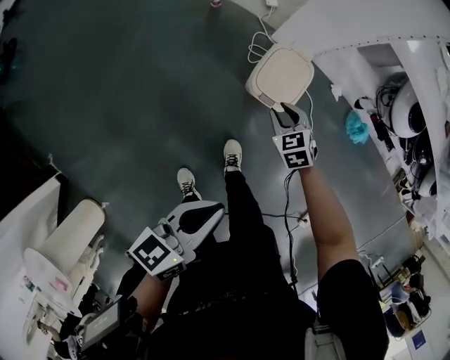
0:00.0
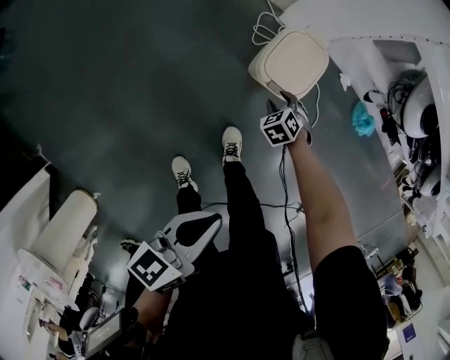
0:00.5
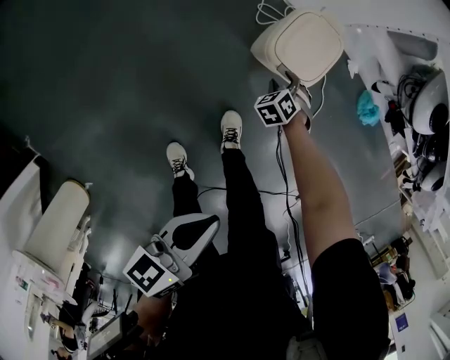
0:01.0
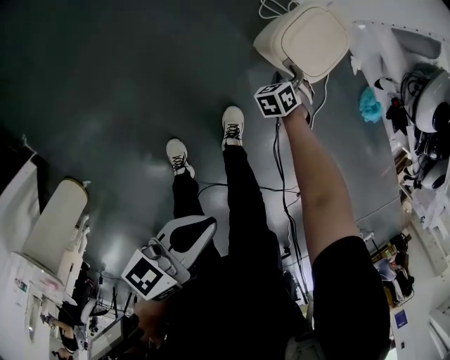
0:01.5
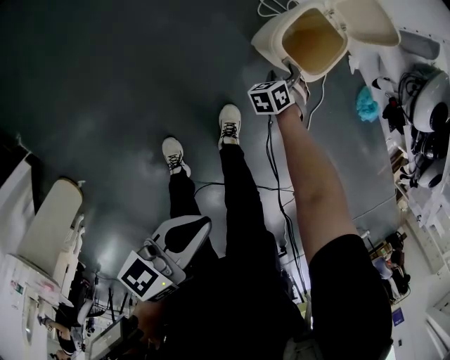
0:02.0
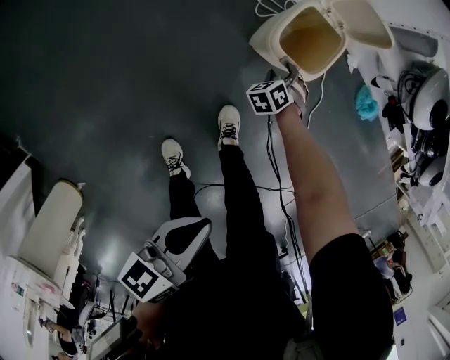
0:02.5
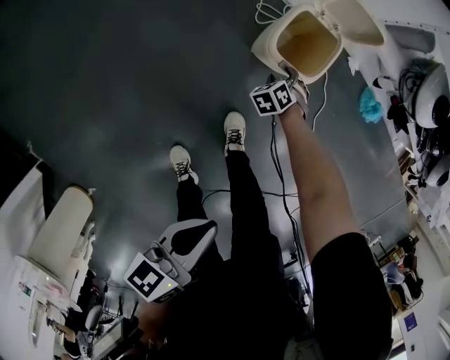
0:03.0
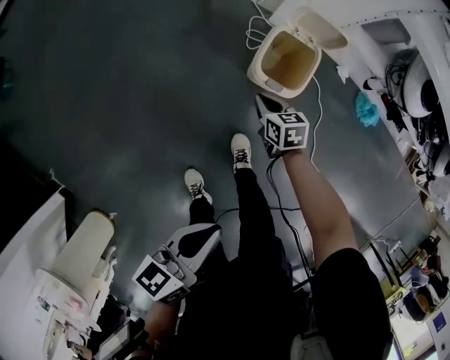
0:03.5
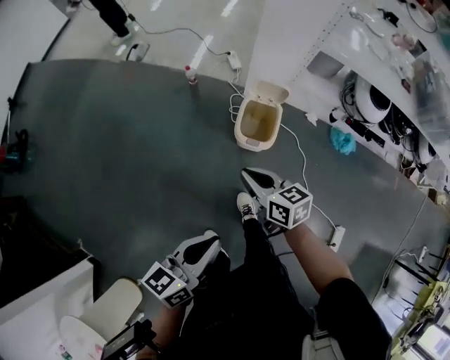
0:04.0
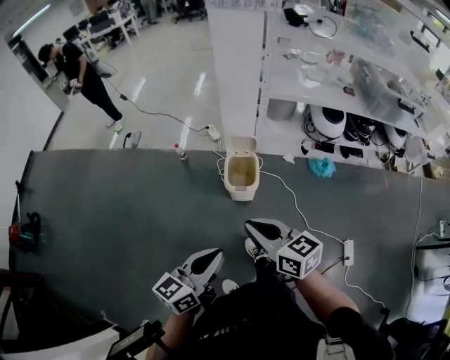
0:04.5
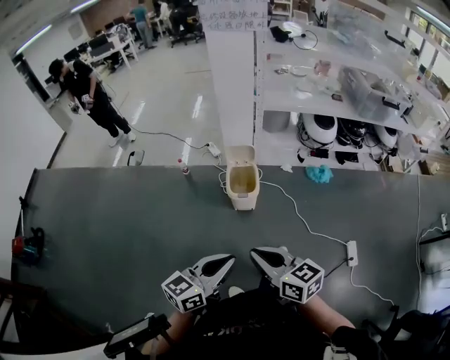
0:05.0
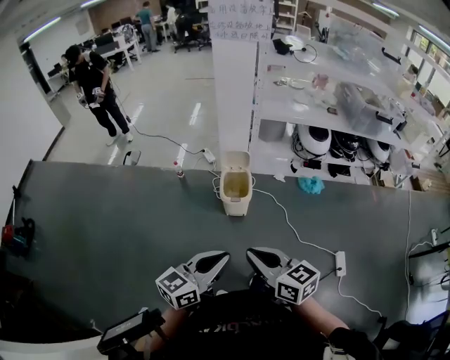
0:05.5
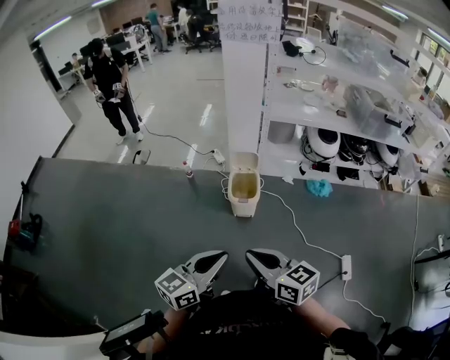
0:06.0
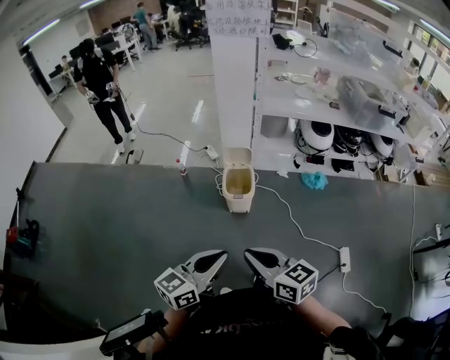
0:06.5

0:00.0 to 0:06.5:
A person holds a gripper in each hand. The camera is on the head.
0:00.0 to 0:02.0: The right gripper moves downward, approximately 25 cm, turns by roughly 40 degrees, and opens, while the left gripper goes approximately 15 cm downward.
0:02.0 to 0:04.5: The right gripper is displaced upward by approximately 70 cm, tips its fingers upward by some 50 degrees, and closes up. The left gripper moves upward, approximately 30 cm, and turns by roughly 40 degrees.
0:04.5 to 0:06.5: The right gripper travels backward by roughly 15 cm. Meanwhile the left gripper moves backward, roughly 10 cm.

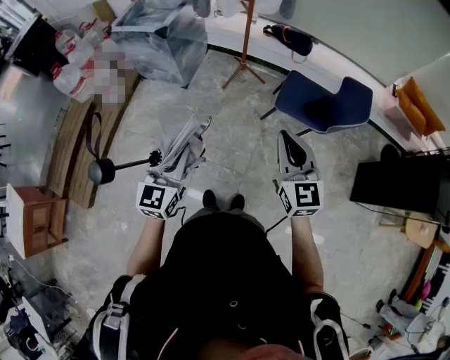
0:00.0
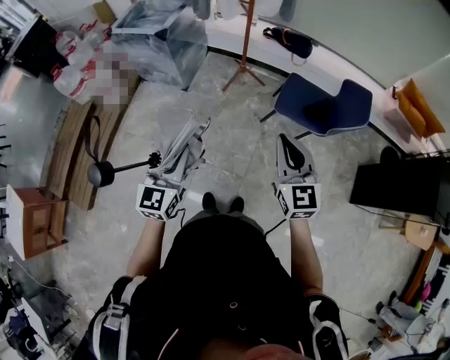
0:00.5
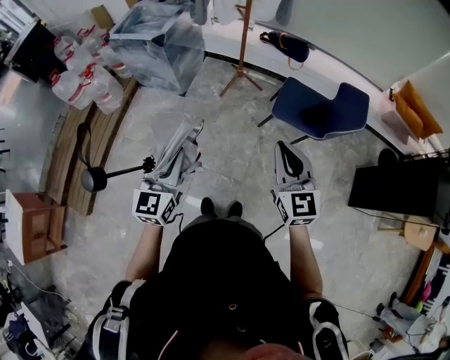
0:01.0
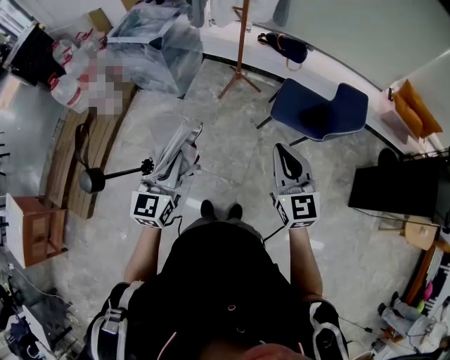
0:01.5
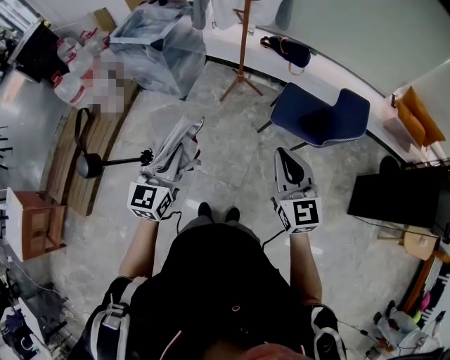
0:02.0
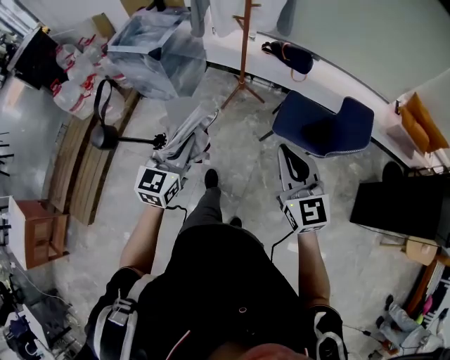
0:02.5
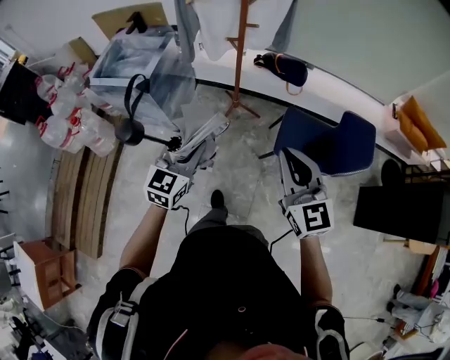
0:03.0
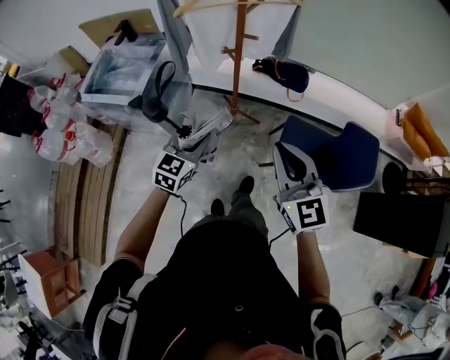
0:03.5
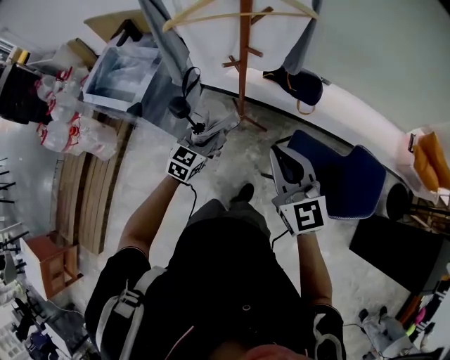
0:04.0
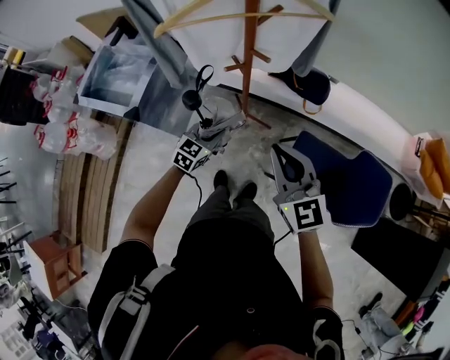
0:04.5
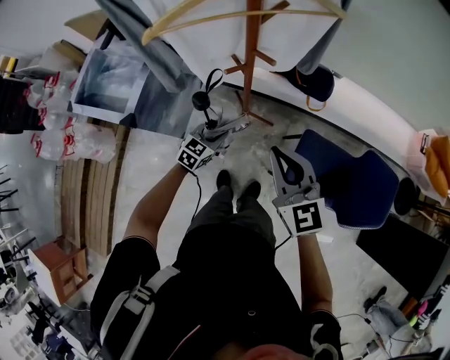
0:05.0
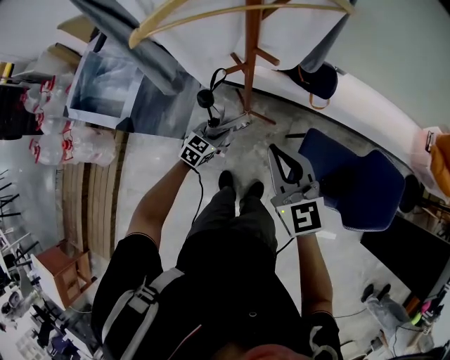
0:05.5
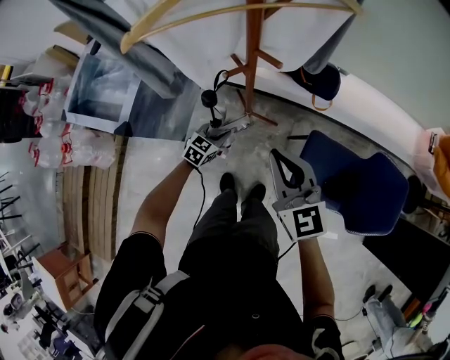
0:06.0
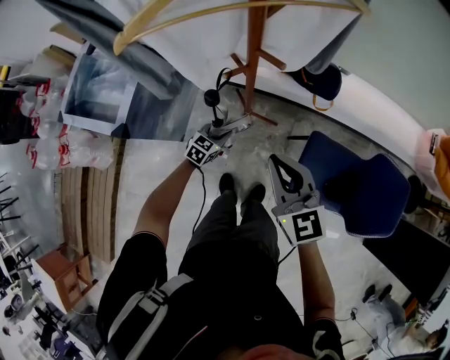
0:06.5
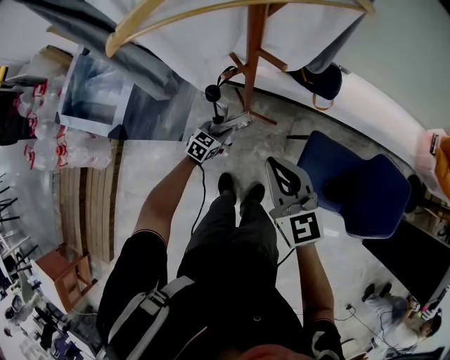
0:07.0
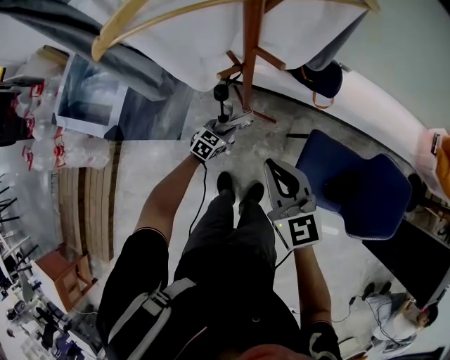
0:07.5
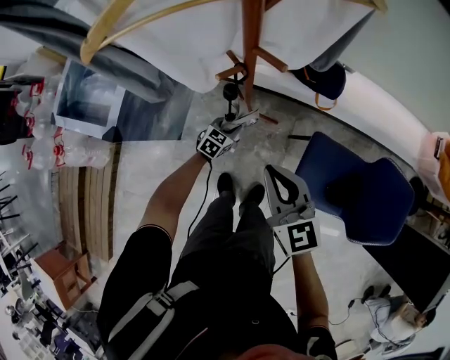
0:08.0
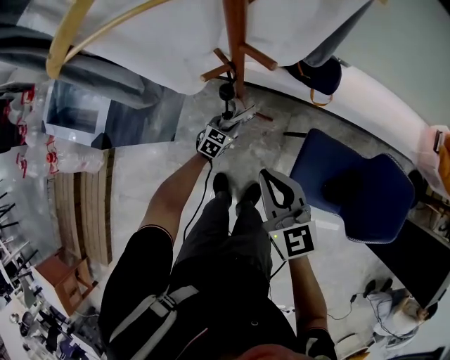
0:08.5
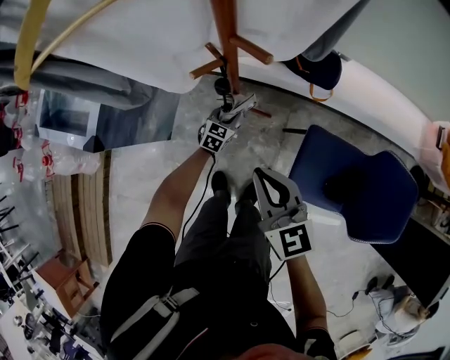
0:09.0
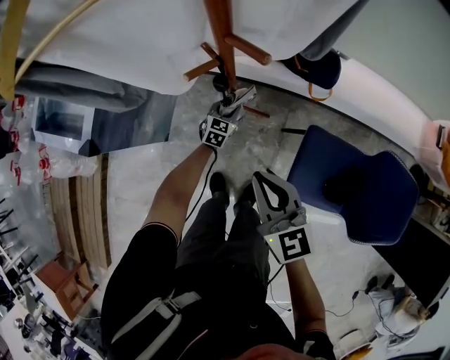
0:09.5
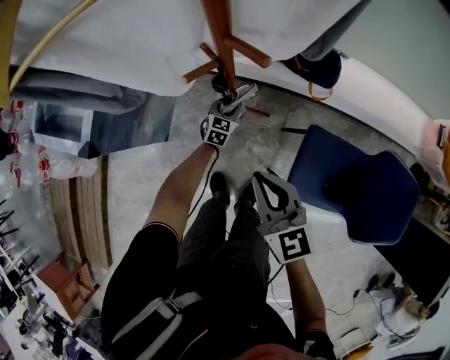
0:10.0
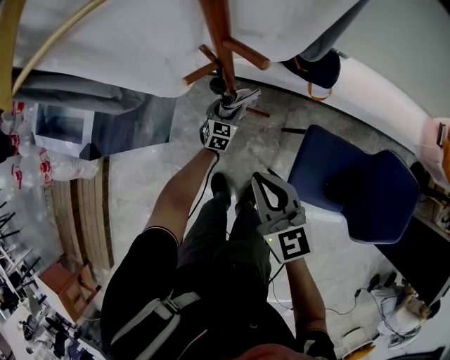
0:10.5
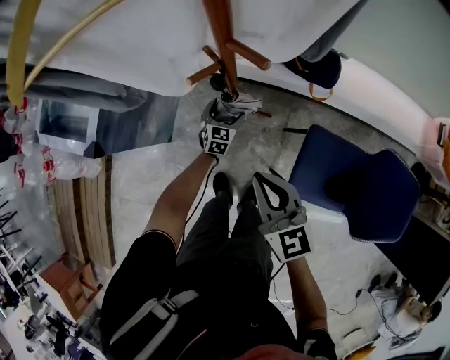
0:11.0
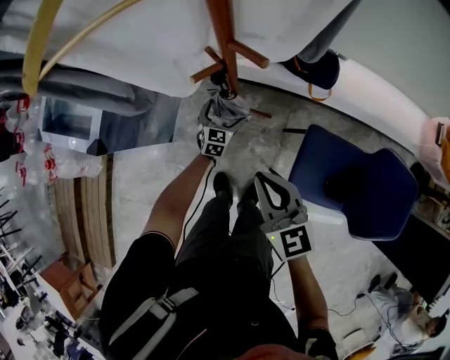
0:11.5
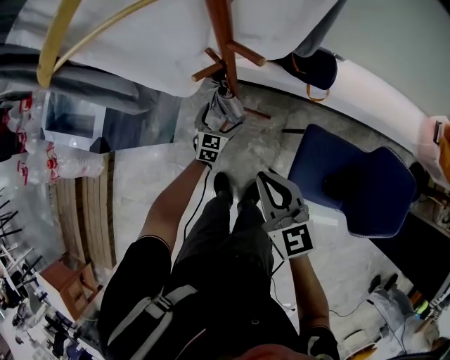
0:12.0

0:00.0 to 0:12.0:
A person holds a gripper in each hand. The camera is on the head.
0:00.0 to 0:02.0: The left gripper is displaced forward by about 5 cm.
0:02.0 to 0:04.0: Both grippers are carried forward, some 50 cm. The left gripper turns by about 30 degrees.
0:04.0 to 0:06.0: The right gripper travels downward and forward by roughly 15 cm. Meanwhile the left gripper shifts approximately 25 cm downward and forward.
0:06.0 to 0:08.0: The right gripper shifts some 5 cm downward. Meanwhile the left gripper heads downward and forward, covering about 10 cm.
0:08.0 to 0:10.0: The right gripper shifts some 5 cm downward. Meanwhile the left gripper moves forward, about 10 cm.
0:10.0 to 0:12.0: The left gripper moves upward, roughly 5 cm, and opens its fingers.

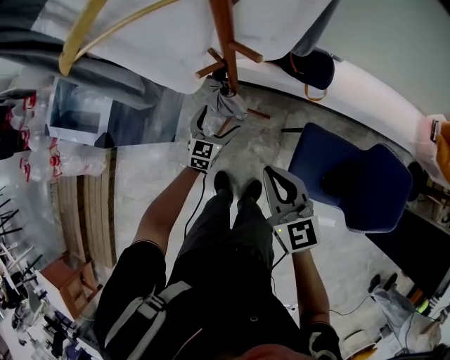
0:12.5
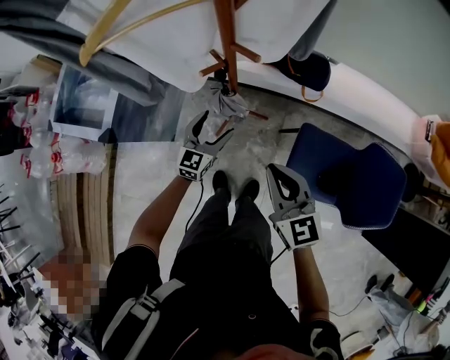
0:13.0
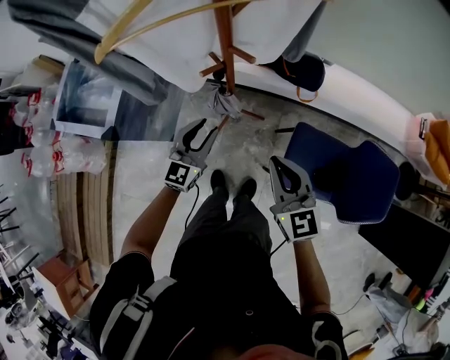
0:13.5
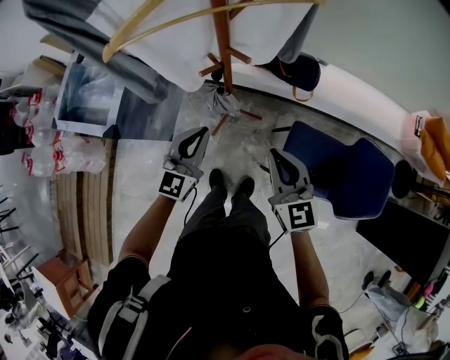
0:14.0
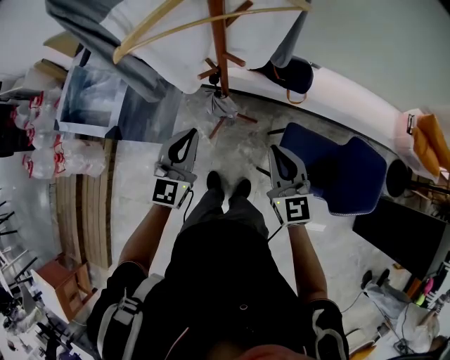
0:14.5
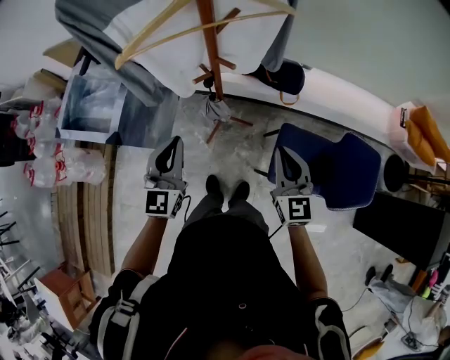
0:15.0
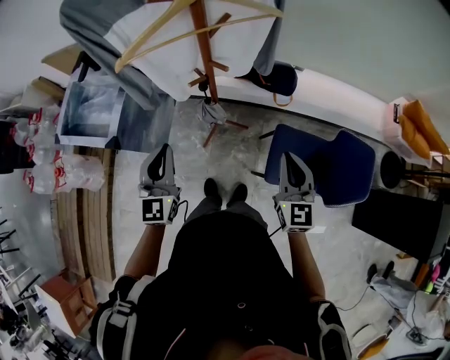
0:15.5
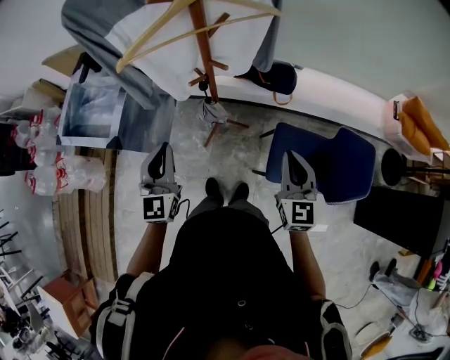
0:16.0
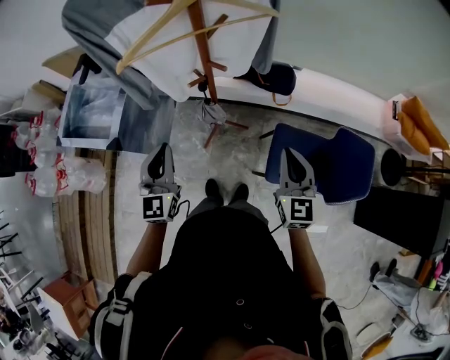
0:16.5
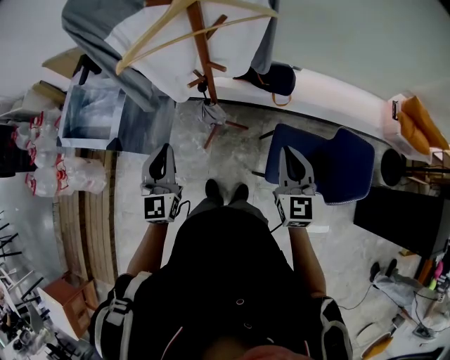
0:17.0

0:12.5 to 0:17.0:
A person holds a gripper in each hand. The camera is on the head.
0:12.5 to 0:14.5: The left gripper is displaced upward by approximately 30 cm, and closes up. Meanwhile the right gripper is displaced upward by some 10 cm.
0:14.5 to 0:17.0: The right gripper moves to the right, approximately 5 cm, while the left gripper changes place by approximately 10 cm.

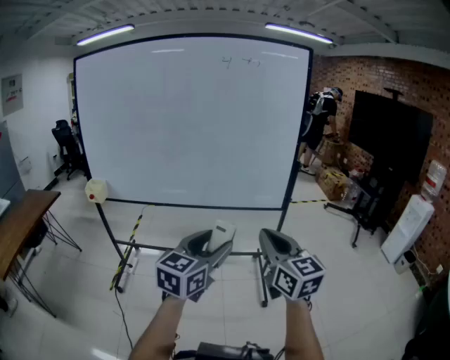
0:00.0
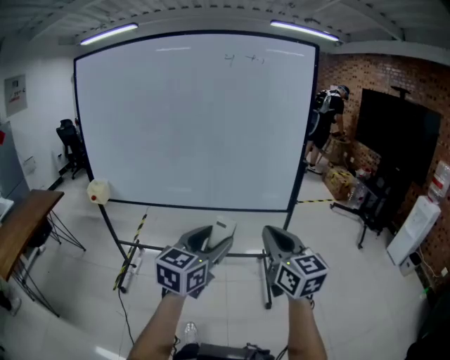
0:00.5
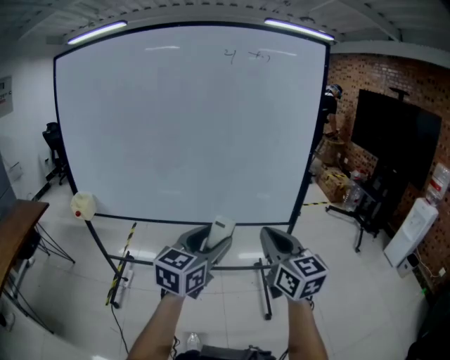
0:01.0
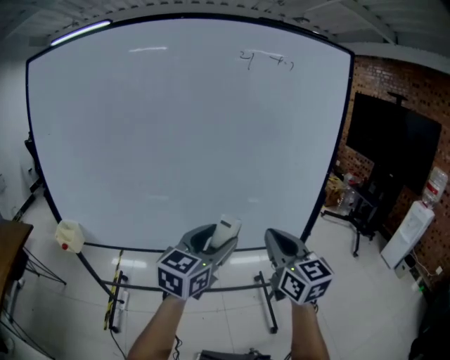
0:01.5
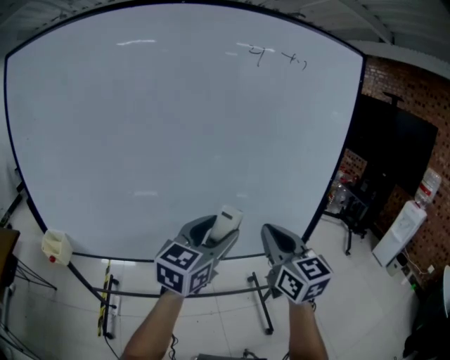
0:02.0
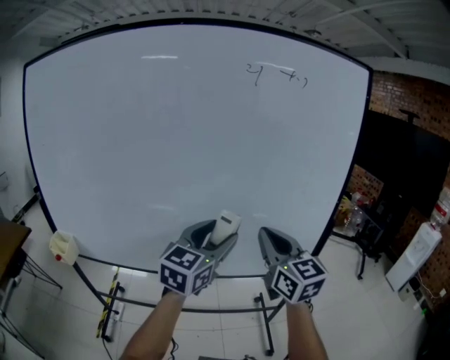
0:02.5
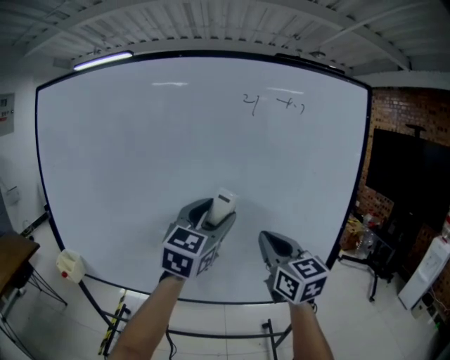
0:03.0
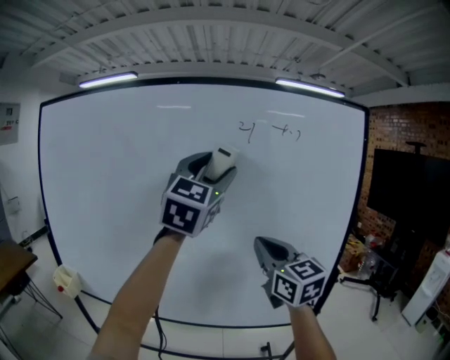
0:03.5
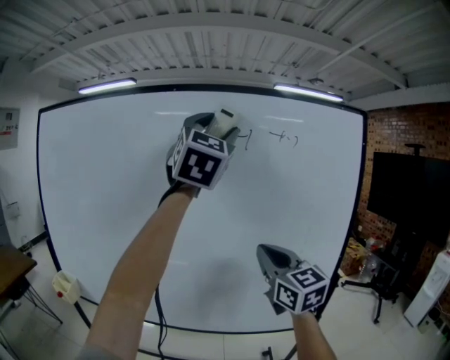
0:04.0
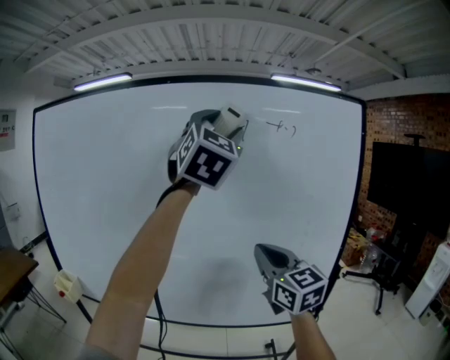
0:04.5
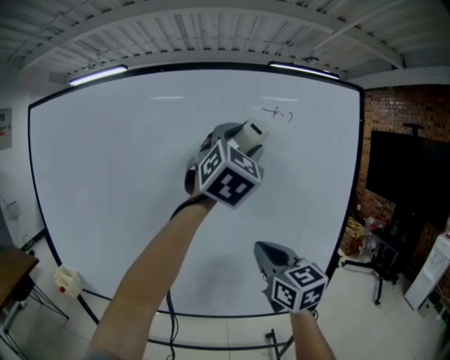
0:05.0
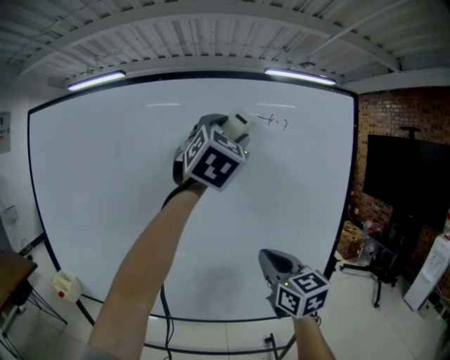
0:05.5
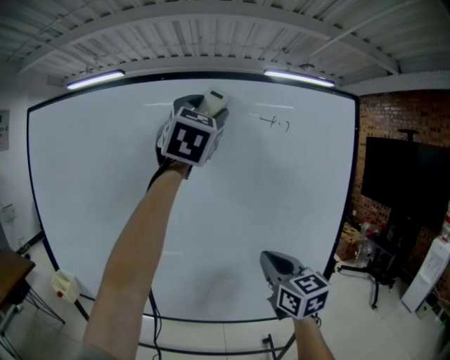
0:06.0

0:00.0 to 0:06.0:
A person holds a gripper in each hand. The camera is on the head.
0:00.0 to 0:02.0: The left gripper travels forward by some 25 cm; the right gripper shifts about 25 cm forward and to the left.
0:02.0 to 0:04.0: The right gripper travels upward and forward by some 15 cm, while the left gripper moves upward, approximately 40 cm, and rotates approximately 60 degrees.
0:04.0 to 0:06.0: The left gripper goes downward and returns, about 10 cm each way, while the right gripper changes place by roughly 5 cm.
